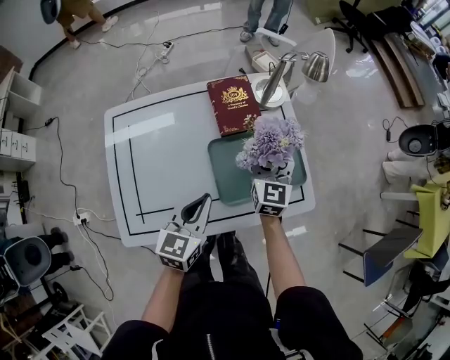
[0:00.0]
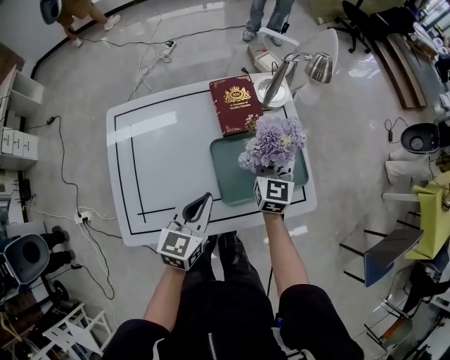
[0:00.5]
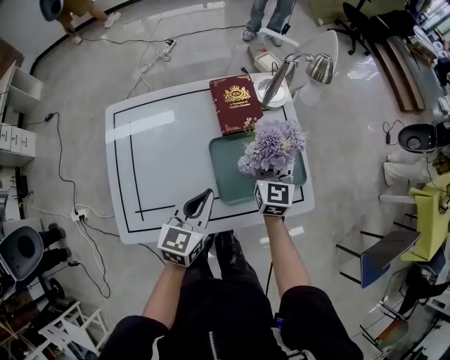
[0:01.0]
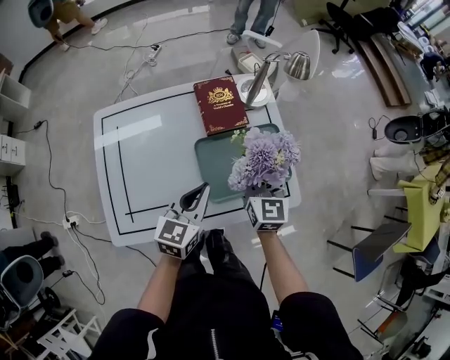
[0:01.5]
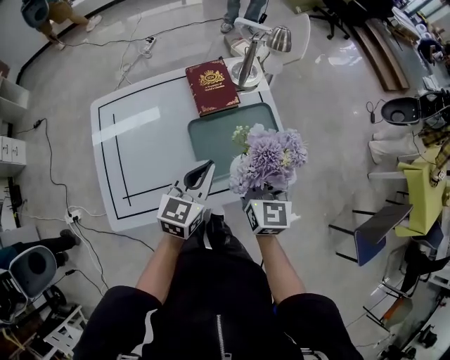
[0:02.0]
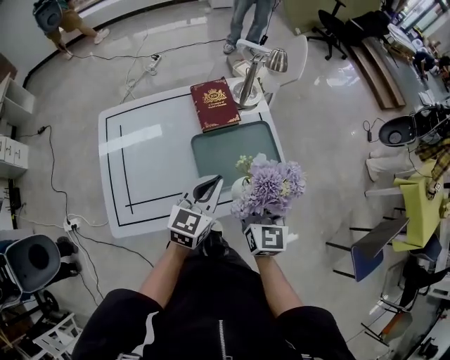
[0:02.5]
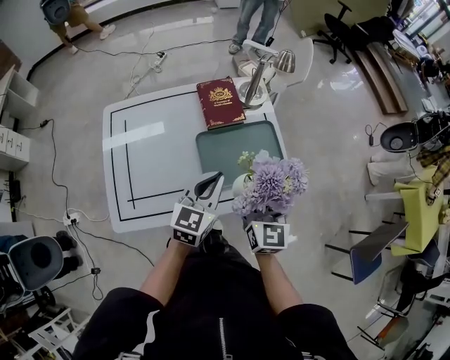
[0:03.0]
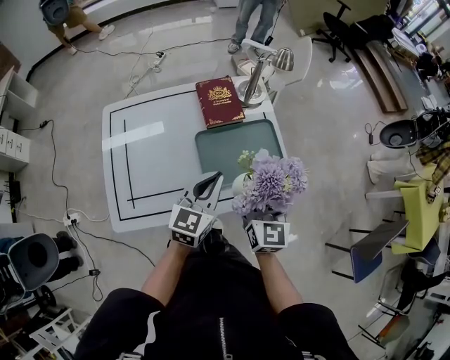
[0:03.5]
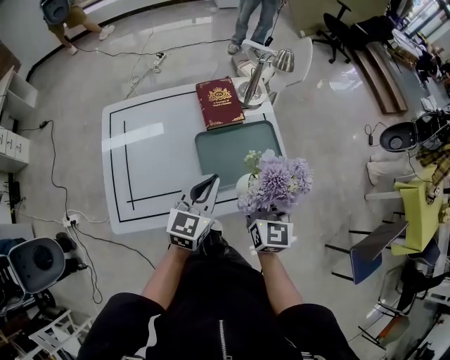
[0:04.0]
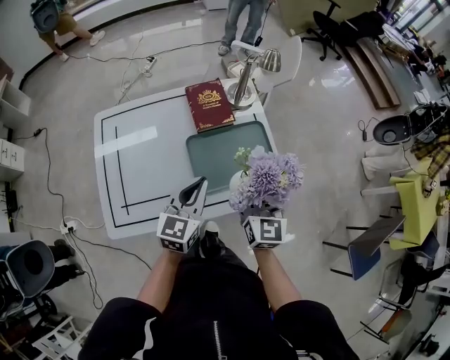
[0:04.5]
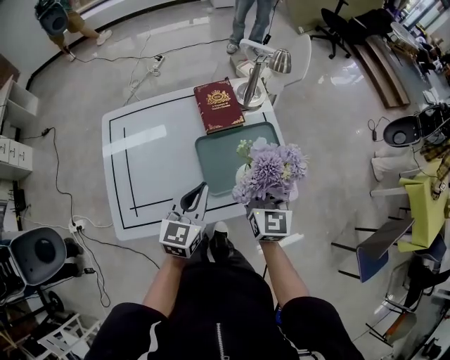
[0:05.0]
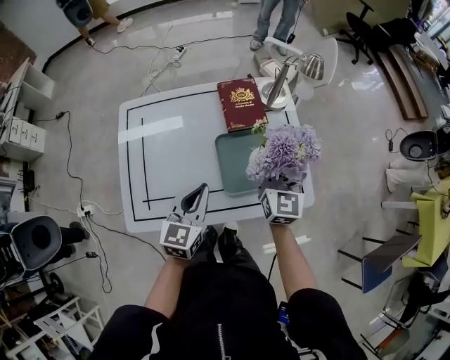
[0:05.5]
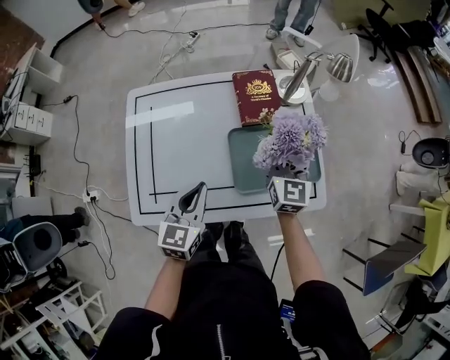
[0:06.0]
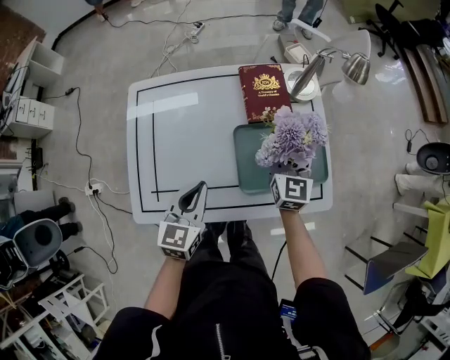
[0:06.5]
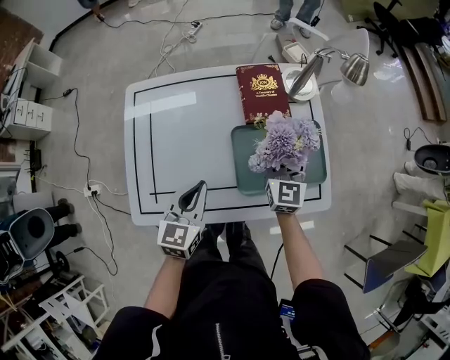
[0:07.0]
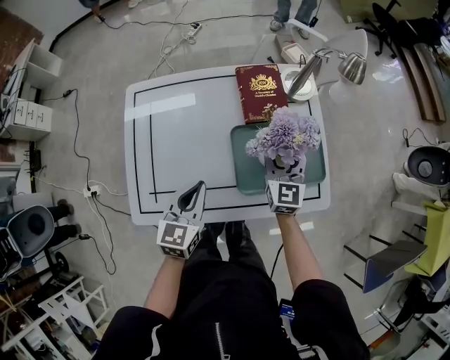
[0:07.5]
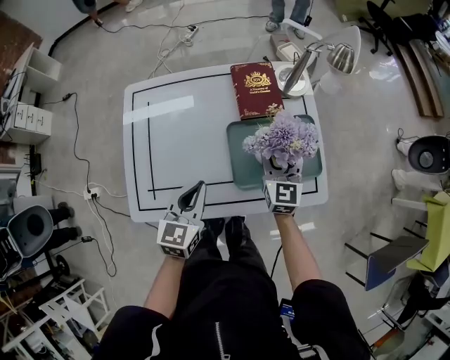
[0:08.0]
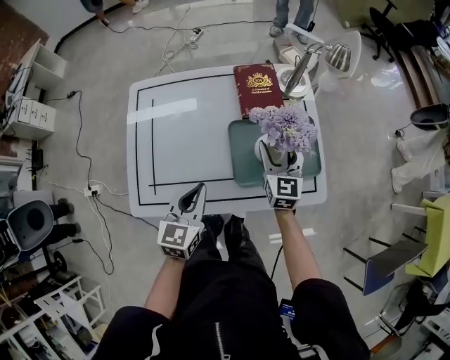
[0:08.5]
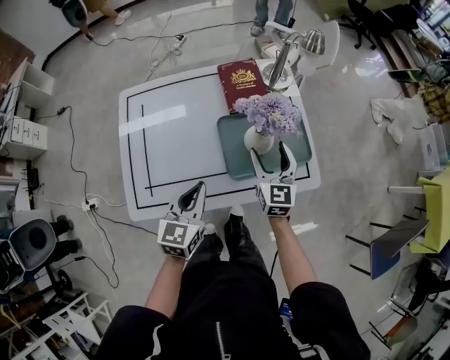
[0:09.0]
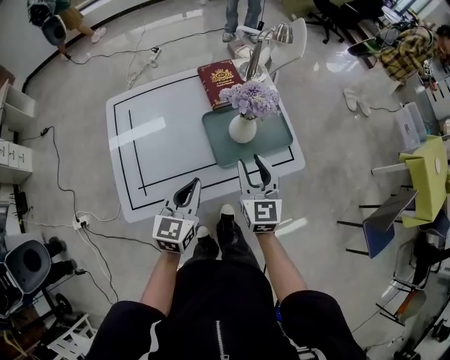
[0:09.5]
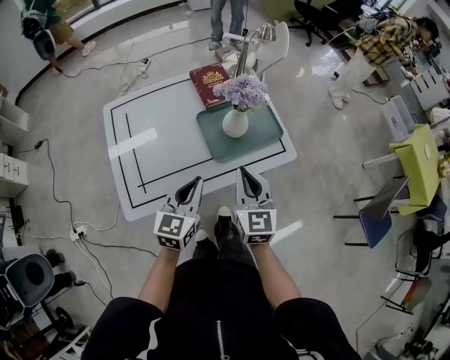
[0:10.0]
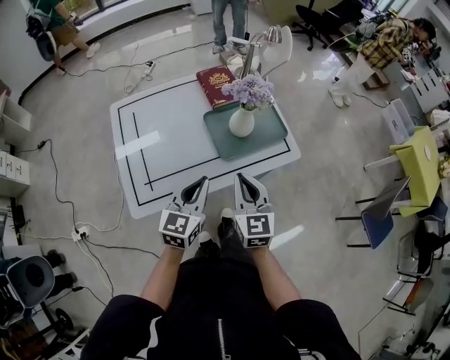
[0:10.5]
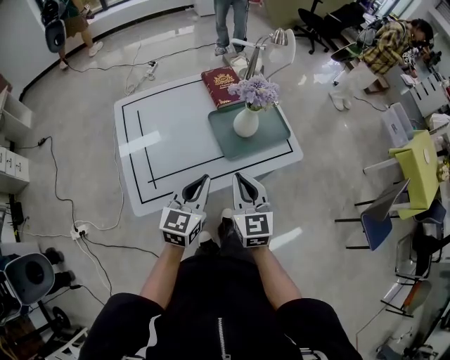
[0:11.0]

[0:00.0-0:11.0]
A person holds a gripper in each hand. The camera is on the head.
0.0 to 2.0 s: The left gripper is displaced to the right by about 5 cm. The right gripper heads backward and upward, covering about 15 cm.
2.0 to 3.5 s: There are only small adjustments of the grippers.
3.5 to 5.5 s: The right gripper travels forward by roughly 10 cm. Meanwhile the left gripper travels to the left by about 10 cm.
5.5 to 7.5 s: The right gripper is displaced downward by some 10 cm. The left gripper ends up about 5 cm from where it was.
7.5 to 9.0 s: The left gripper moves backward, roughly 5 cm. The right gripper is displaced backward by approximately 10 cm.
9.0 to 11.0 s: The right gripper shifts roughly 25 cm backward, and closes its fingers, while the left gripper goes some 10 cm backward and upward.

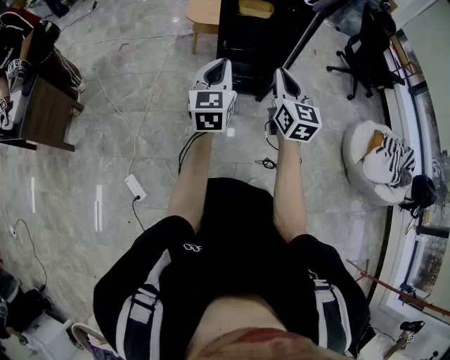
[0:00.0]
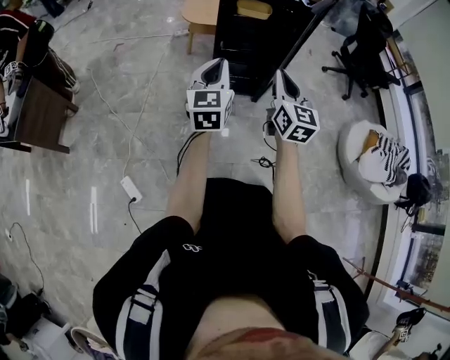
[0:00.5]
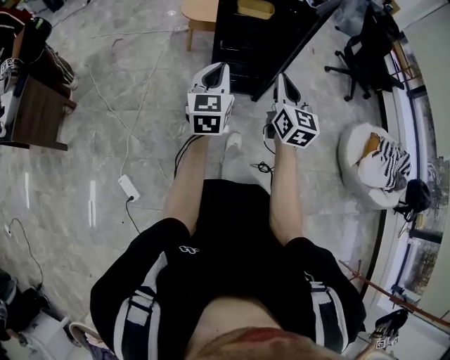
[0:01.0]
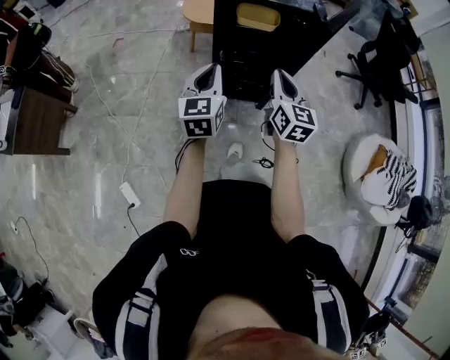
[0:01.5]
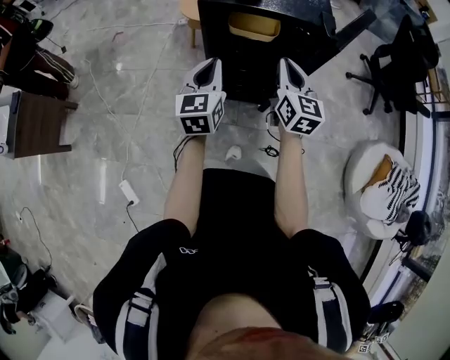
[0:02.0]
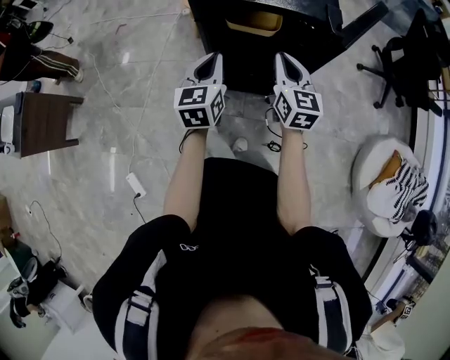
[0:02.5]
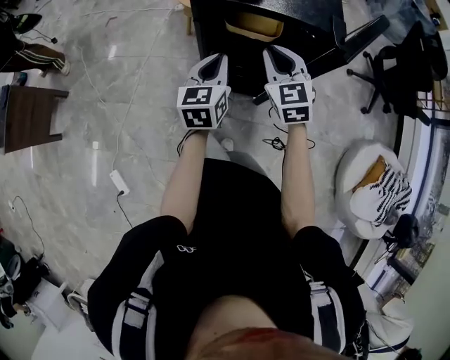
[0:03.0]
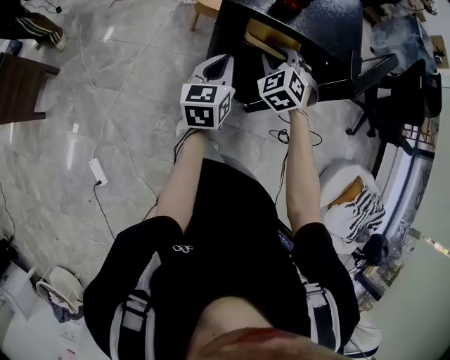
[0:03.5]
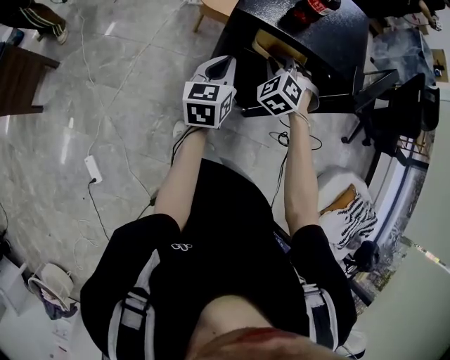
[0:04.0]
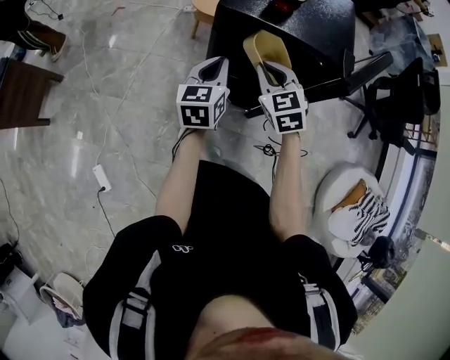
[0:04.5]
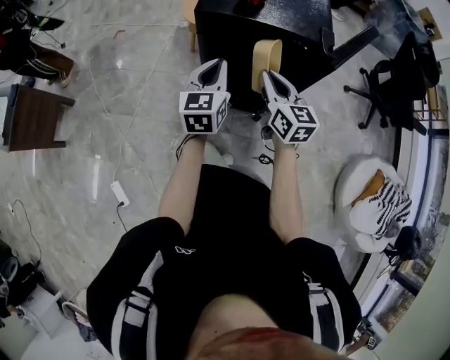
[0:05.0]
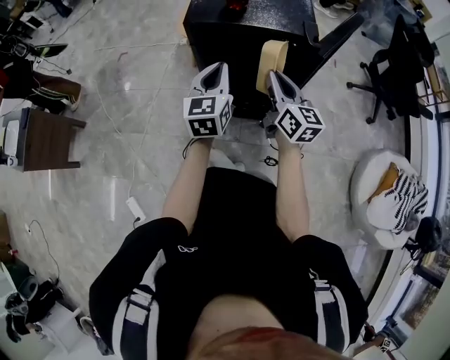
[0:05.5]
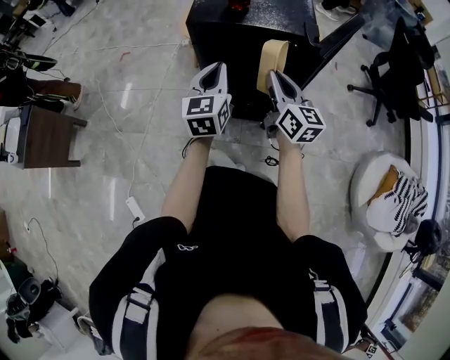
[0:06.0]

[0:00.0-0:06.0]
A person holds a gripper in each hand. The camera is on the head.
0.0 to 2.0 s: Both grippers move forward, roughly 35 cm.
2.0 to 4.0 s: The left gripper goes approximately 10 cm forward and downward; the right gripper goes roughly 20 cm forward, downward and to the left, and rolls counterclockwise, seen from behind, by about 70 degrees.
4.0 to 6.0 s: The right gripper travels backward, upward and to the right by about 20 cm, and rotates around the line of its fingers by roughly 80 degrees, clockwise from behind. Meanwhile the left gripper is displaced upward, backward and to the right by roughly 15 cm.

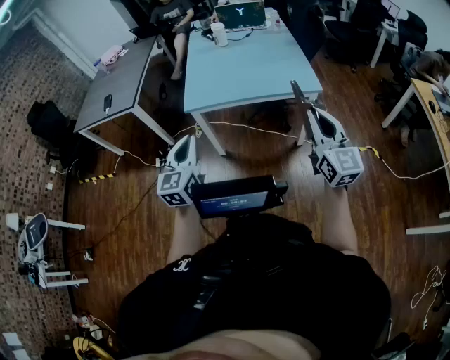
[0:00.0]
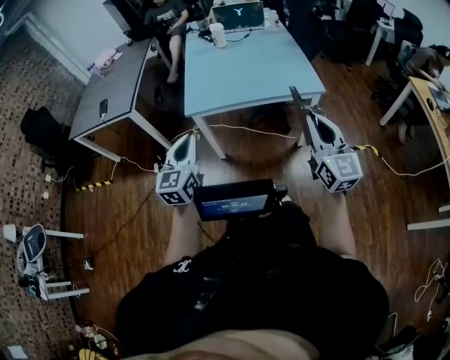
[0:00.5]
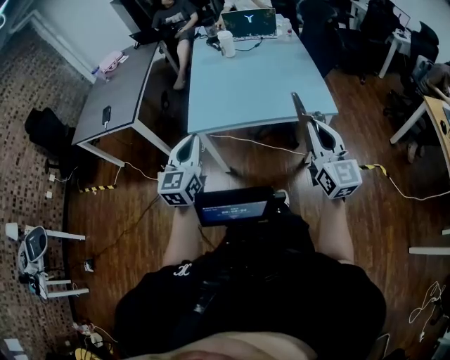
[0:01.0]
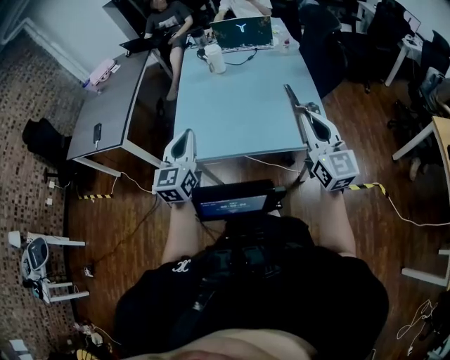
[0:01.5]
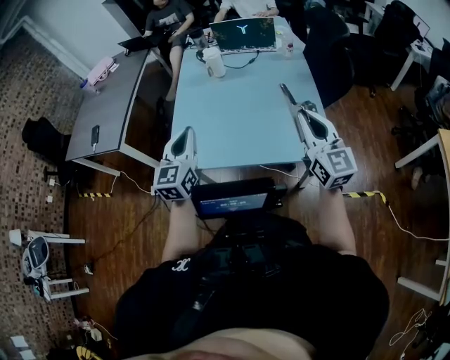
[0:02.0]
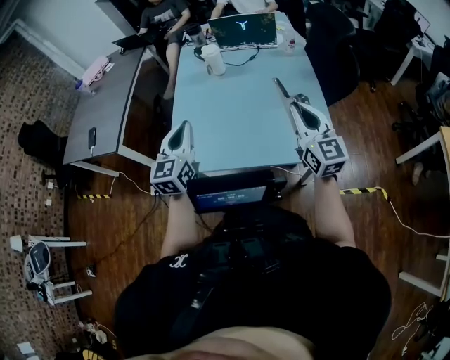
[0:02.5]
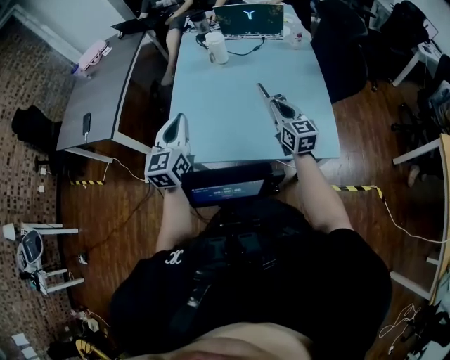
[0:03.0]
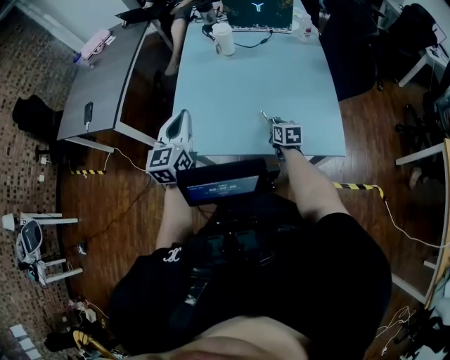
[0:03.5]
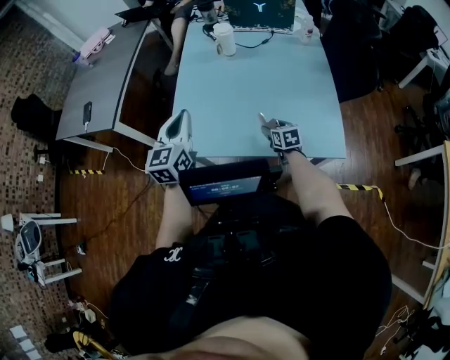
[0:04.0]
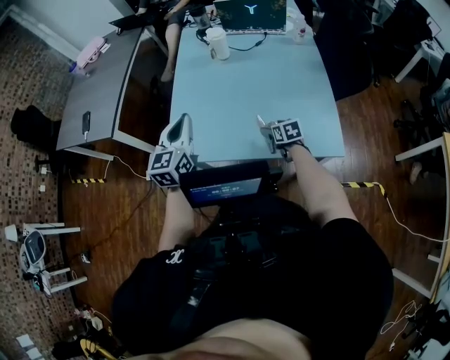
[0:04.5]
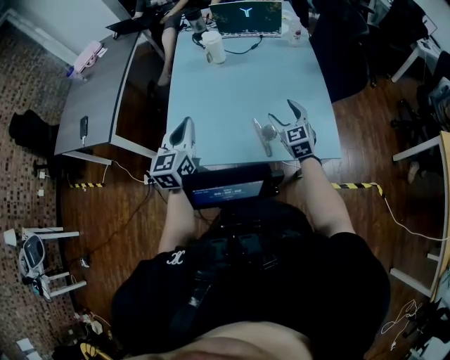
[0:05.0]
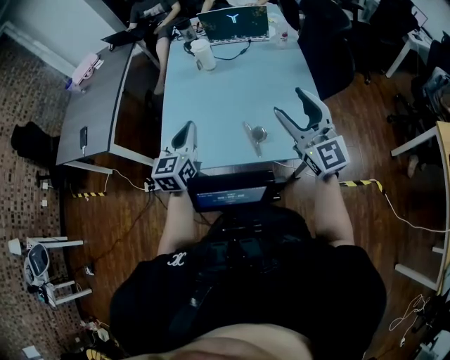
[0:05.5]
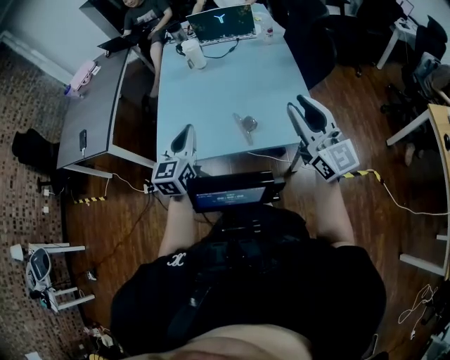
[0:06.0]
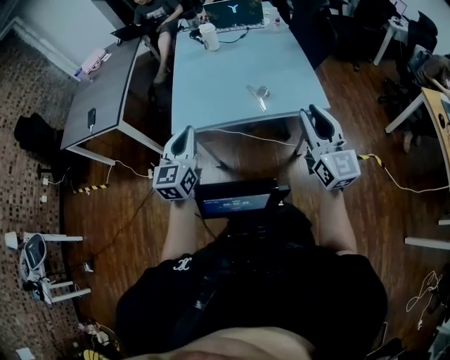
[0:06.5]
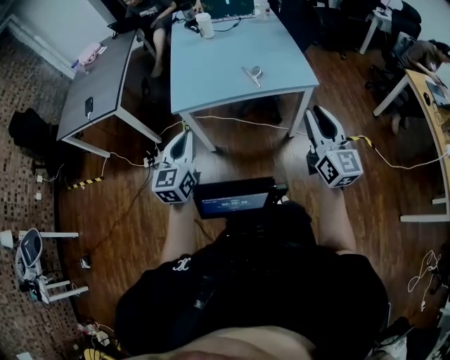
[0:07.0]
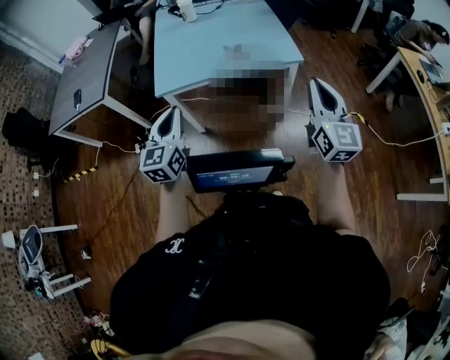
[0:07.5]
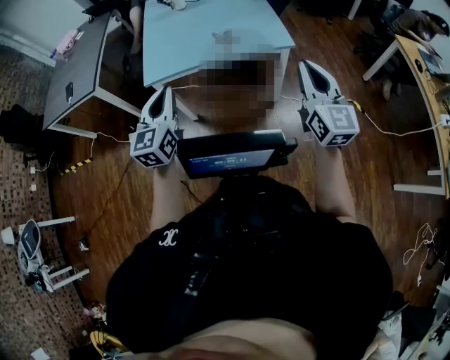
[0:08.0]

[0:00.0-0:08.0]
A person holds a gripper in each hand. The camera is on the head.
0.0 to 2.0 s: Both grippers are carried forward, approximately 40 cm.
2.0 to 4.0 s: The left gripper goes some 10 cm forward and to the left. The right gripper moves downward, some 35 cm, tips its fingers downward by about 50 degrees, and opens.
4.0 to 6.0 s: The right gripper shifts approximately 40 cm upward and backward, points its fingers roughly 60 degrees further upward, and closes its fingers. The left gripper heads to the right and backward, covering some 15 cm.
6.0 to 8.0 s: Both grippers travel together backward, about 30 cm. The right gripper swivels approximately 20 degrees.

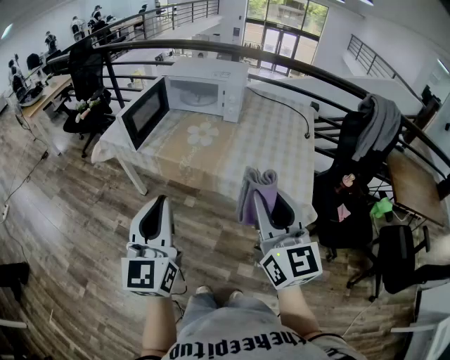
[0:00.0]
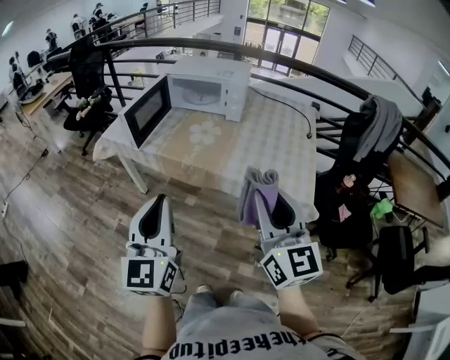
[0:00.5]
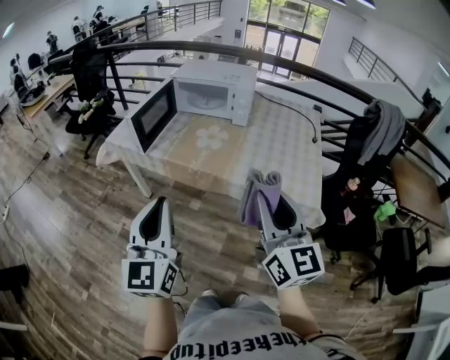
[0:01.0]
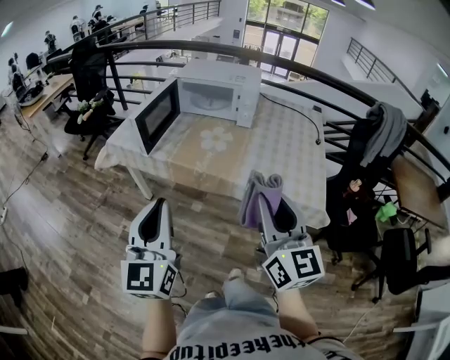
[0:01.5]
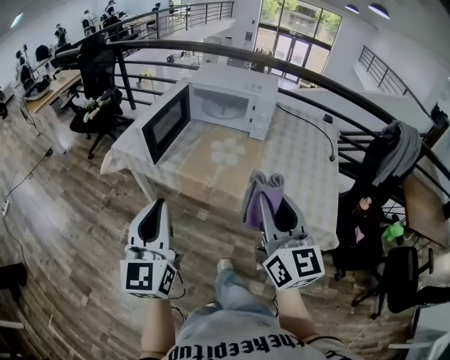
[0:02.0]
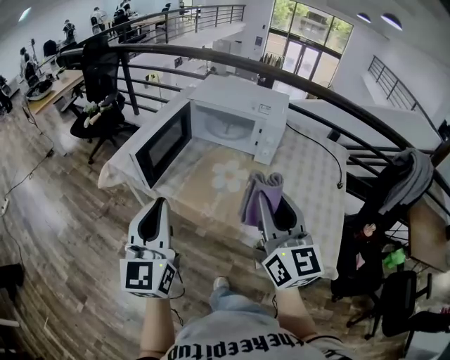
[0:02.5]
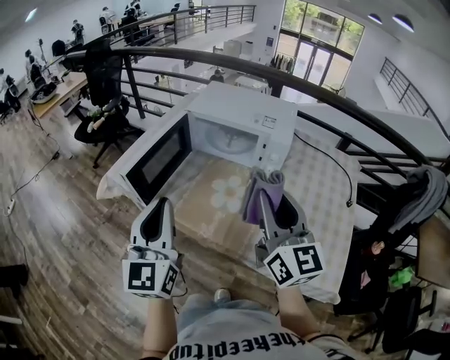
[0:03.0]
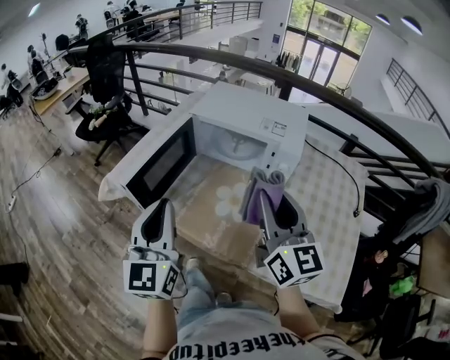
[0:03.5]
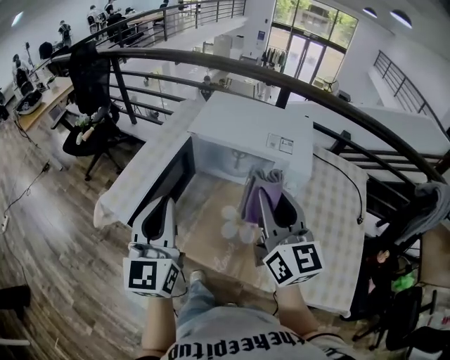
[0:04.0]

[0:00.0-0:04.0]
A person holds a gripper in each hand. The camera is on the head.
0.0 to 2.0 s: Both grippers move forward and to the left, some 15 cm.
2.0 to 4.0 s: The grippers both shift forward by roughly 40 cm.
